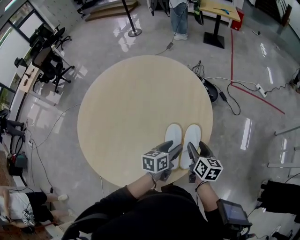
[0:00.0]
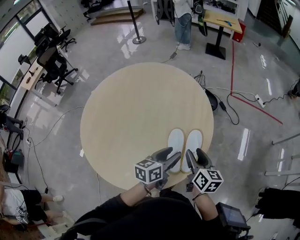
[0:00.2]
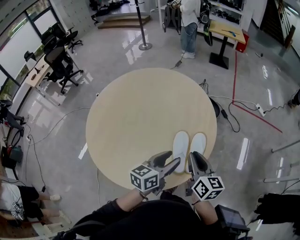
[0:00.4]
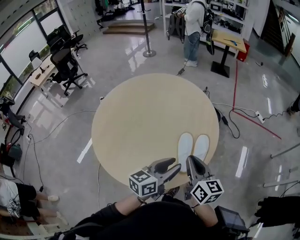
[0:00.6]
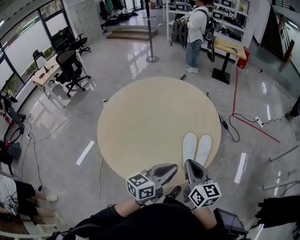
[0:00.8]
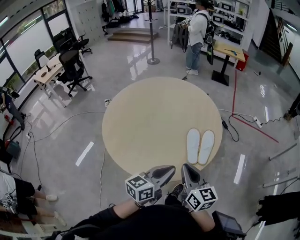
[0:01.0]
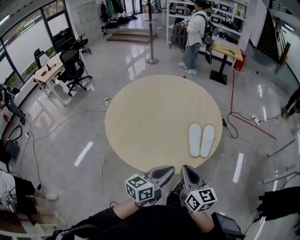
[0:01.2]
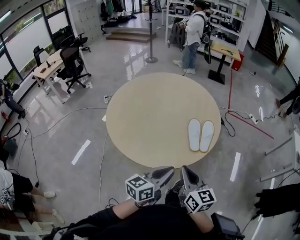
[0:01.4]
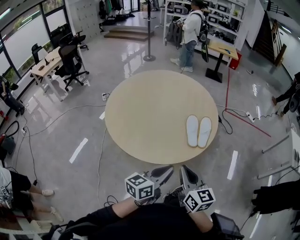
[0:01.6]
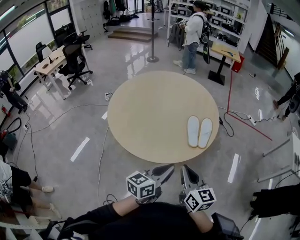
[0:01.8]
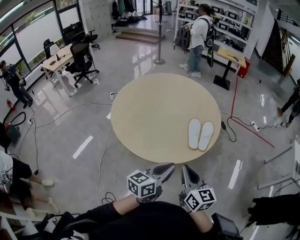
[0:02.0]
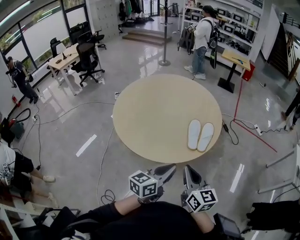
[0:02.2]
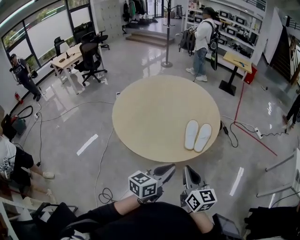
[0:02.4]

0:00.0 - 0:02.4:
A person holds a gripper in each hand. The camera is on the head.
0:00.0 - 0:01.2: The two grippers travel together, backward and to the left, about 40 cm. Both grippers move upward, about 20 cm. The right gripper rotates some 30 degrees, and closes its fingers; the left gripper rotates approximately 30 degrees, and closes.
0:01.2 - 0:02.4: The two grippers go approximately 15 cm to the right and backward.

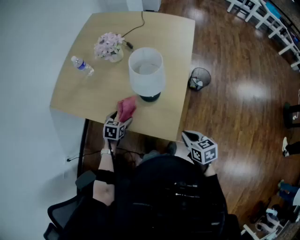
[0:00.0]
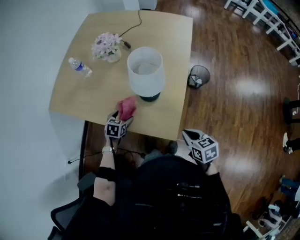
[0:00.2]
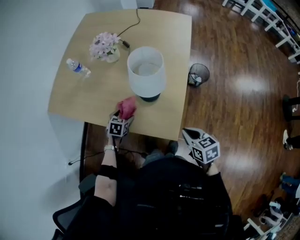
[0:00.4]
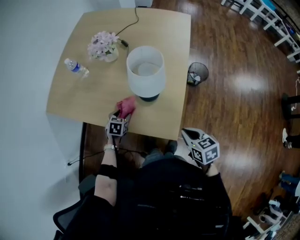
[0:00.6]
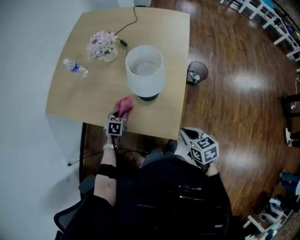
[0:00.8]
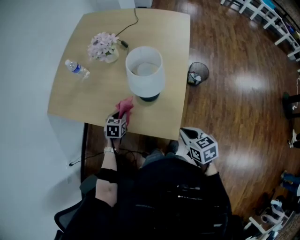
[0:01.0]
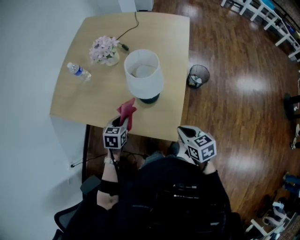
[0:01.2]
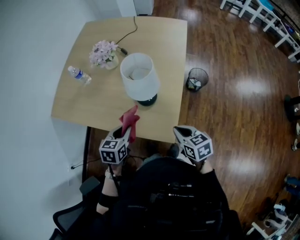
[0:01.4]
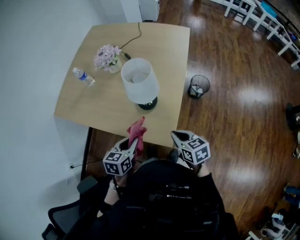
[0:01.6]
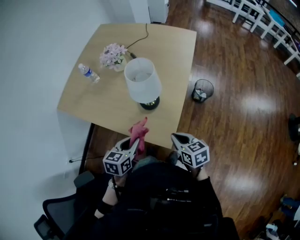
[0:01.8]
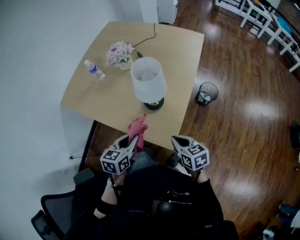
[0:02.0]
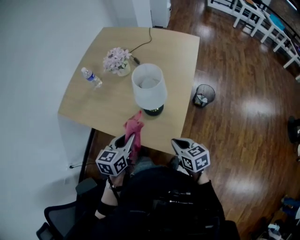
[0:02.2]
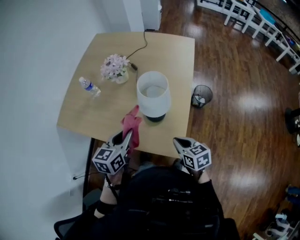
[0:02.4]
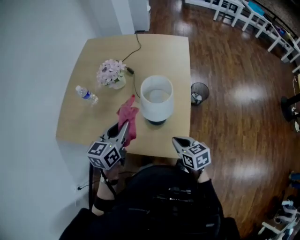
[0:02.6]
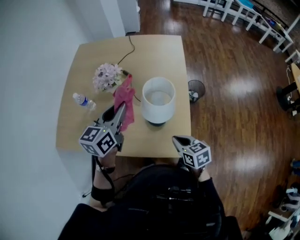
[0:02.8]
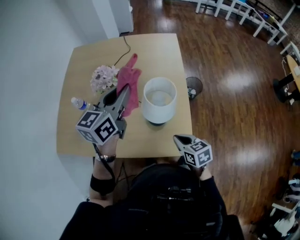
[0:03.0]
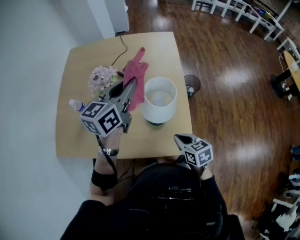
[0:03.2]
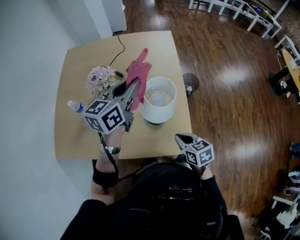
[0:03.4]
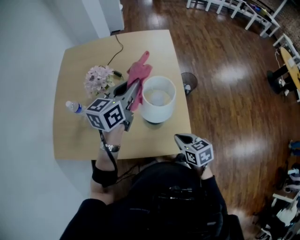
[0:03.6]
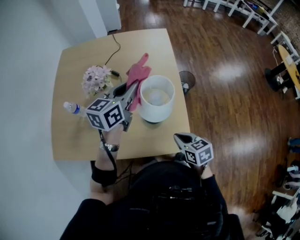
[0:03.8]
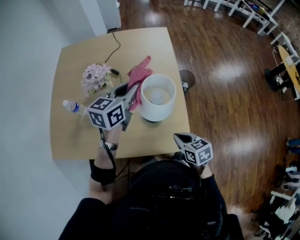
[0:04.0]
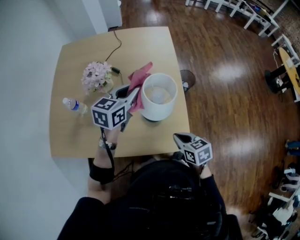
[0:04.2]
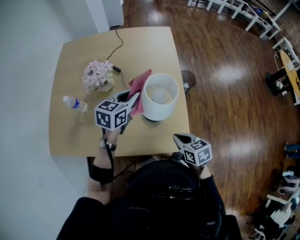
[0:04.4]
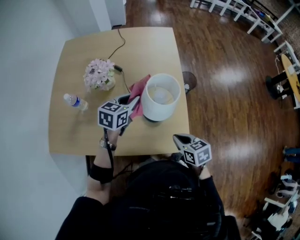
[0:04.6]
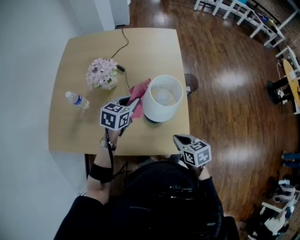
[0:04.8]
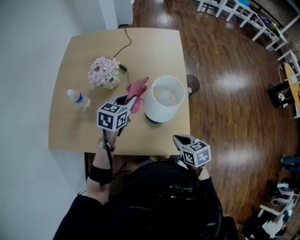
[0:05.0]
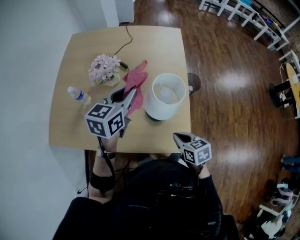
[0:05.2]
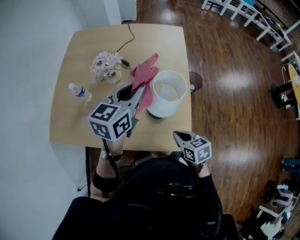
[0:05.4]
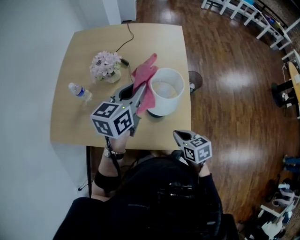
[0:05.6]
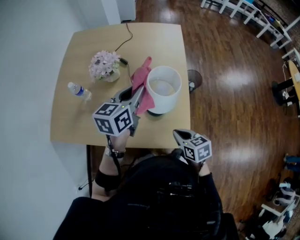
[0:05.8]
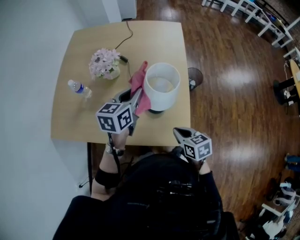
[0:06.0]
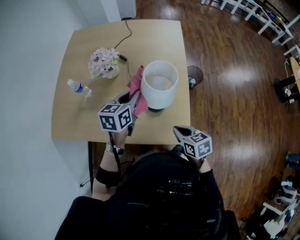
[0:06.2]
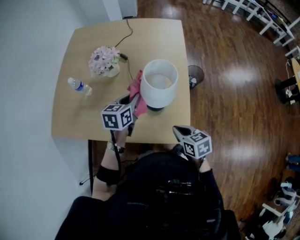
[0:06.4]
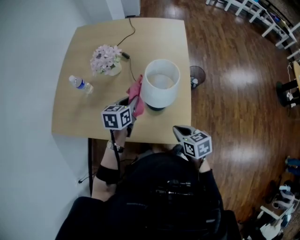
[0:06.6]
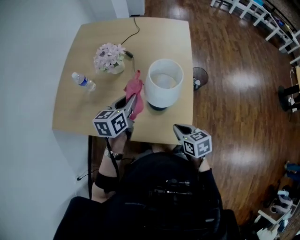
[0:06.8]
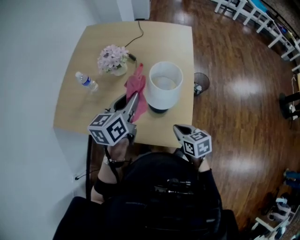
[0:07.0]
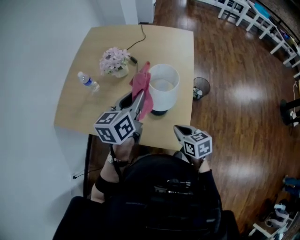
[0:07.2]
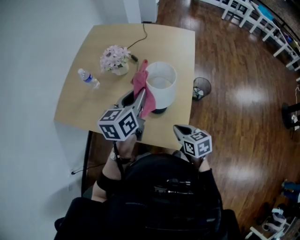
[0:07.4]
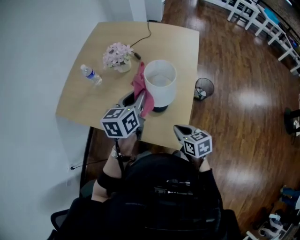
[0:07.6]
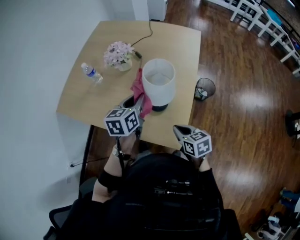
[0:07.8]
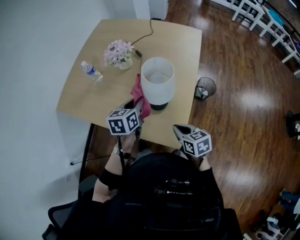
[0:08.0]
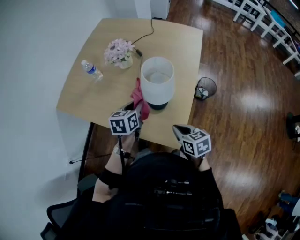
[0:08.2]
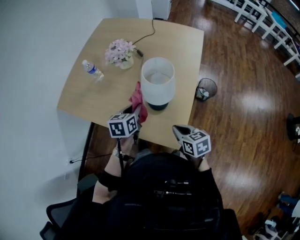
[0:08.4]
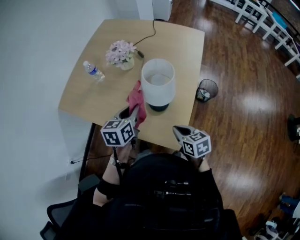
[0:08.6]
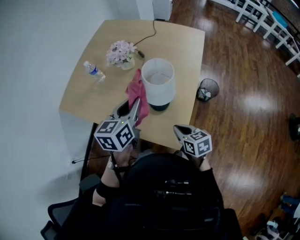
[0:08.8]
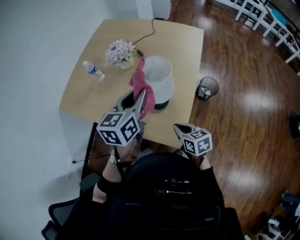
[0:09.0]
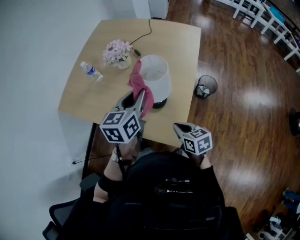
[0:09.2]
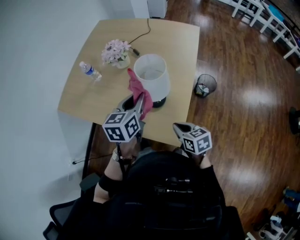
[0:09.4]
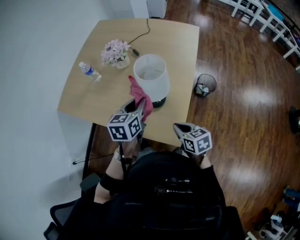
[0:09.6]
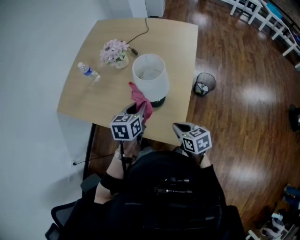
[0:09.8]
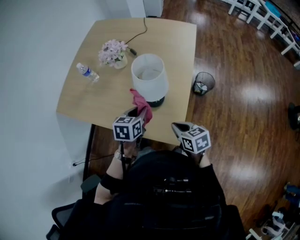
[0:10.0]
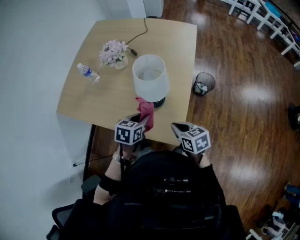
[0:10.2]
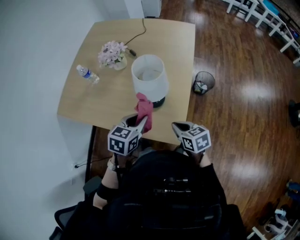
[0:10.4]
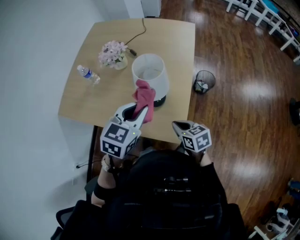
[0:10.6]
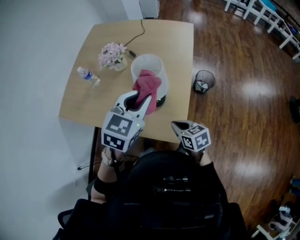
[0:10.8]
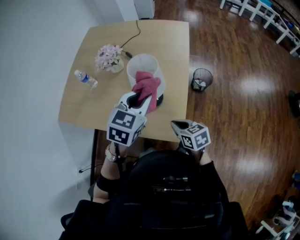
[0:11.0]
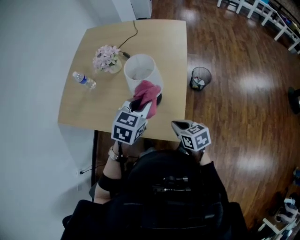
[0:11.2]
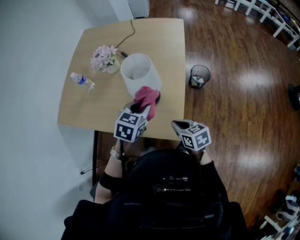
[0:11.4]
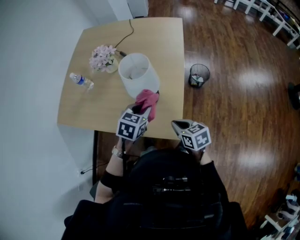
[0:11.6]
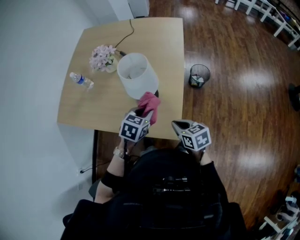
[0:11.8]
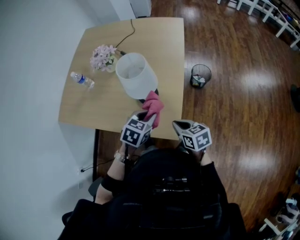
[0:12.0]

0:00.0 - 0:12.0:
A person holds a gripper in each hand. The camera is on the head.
0:00.0 - 0:01.6: The left gripper moves upward, backward and to the right, some 20 cm, and closes up. The right gripper changes place by approximately 5 cm.
0:01.6 - 0:03.0: The left gripper shifts approximately 35 cm forward and upward, and tilts its fingers about 30 degrees upward, while the right gripper is displaced to the left and forward by about 10 cm.
0:03.0 - 0:04.4: The left gripper is displaced downward by approximately 15 cm, and turns by about 20 degrees.
0:04.4 - 0:06.0: The left gripper swings up and down, about 15 cm each way, with 2 reversals.
0:06.0 - 0:07.6: The left gripper moves up and down over about 15 cm, changing direction 2 times.
0:07.6 - 0:09.0: The left gripper moves roughly 15 cm downward and comes back.
0:09.0 - 0:10.4: The left gripper heads downward and backward, covering roughly 15 cm, and rotates approximately 30 degrees.
0:10.4 - 0:12.0: The left gripper goes roughly 5 cm to the right, and reaches roughly 15 cm upward, then returns.

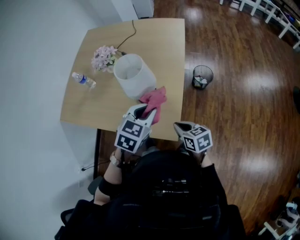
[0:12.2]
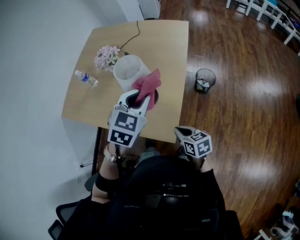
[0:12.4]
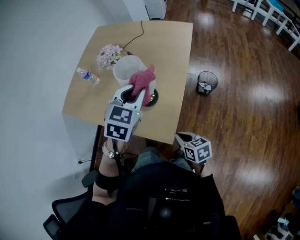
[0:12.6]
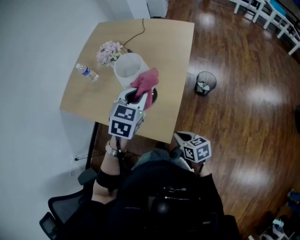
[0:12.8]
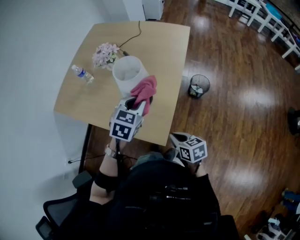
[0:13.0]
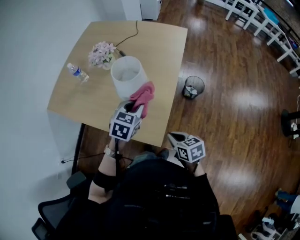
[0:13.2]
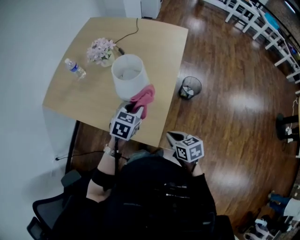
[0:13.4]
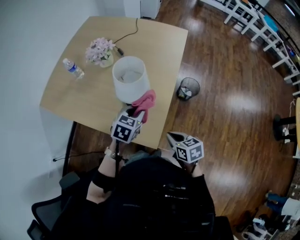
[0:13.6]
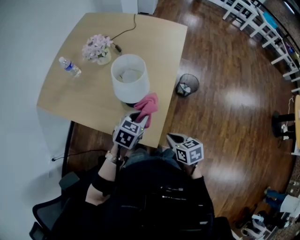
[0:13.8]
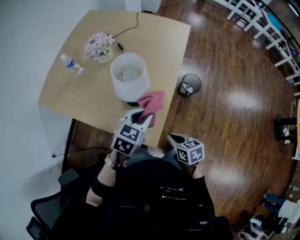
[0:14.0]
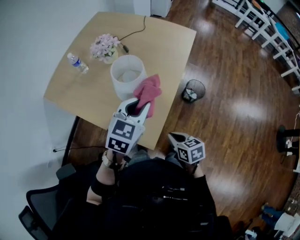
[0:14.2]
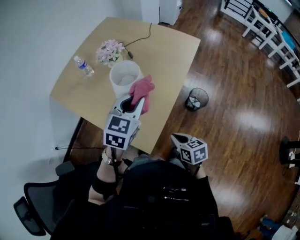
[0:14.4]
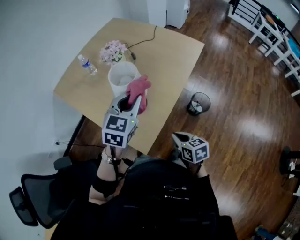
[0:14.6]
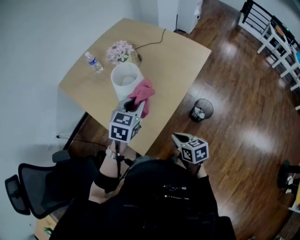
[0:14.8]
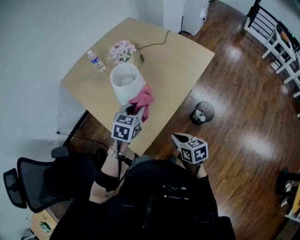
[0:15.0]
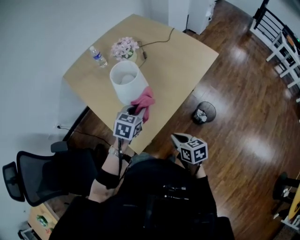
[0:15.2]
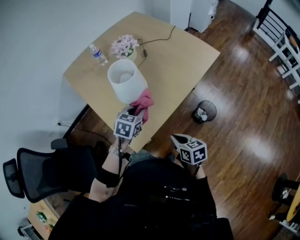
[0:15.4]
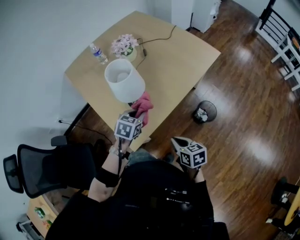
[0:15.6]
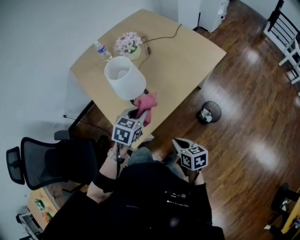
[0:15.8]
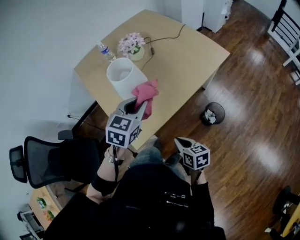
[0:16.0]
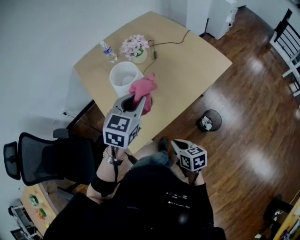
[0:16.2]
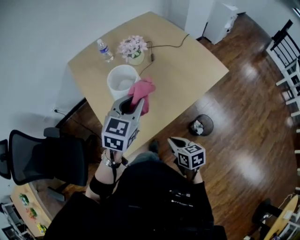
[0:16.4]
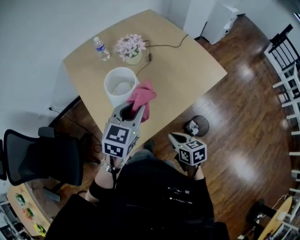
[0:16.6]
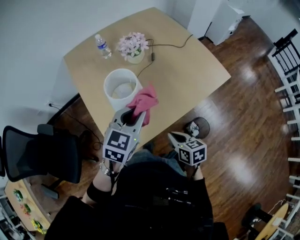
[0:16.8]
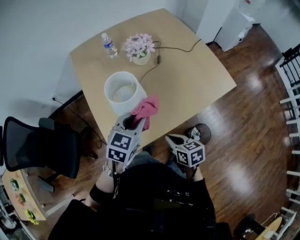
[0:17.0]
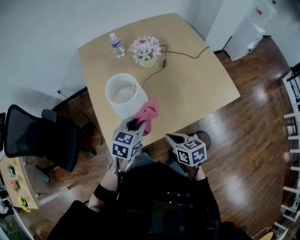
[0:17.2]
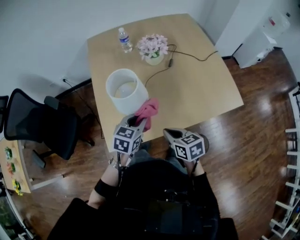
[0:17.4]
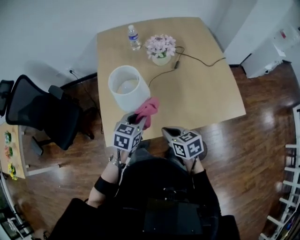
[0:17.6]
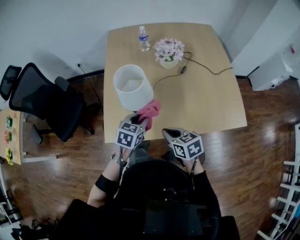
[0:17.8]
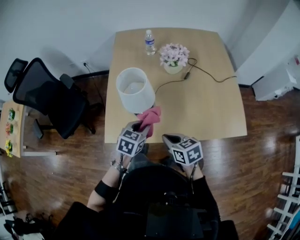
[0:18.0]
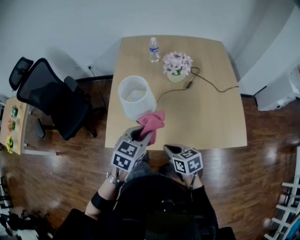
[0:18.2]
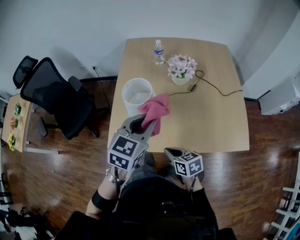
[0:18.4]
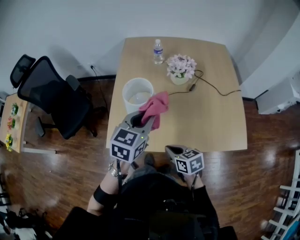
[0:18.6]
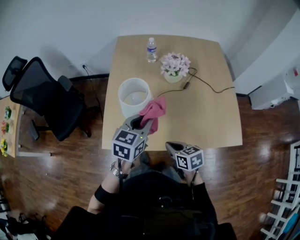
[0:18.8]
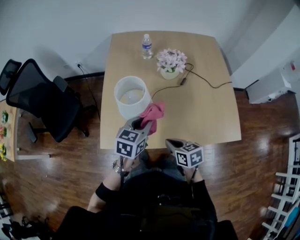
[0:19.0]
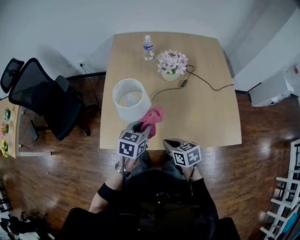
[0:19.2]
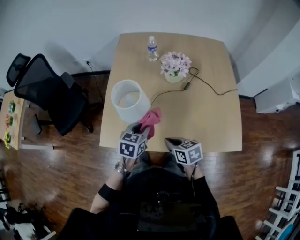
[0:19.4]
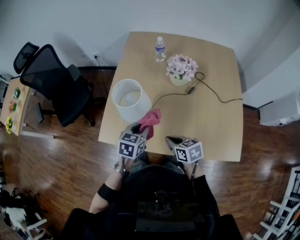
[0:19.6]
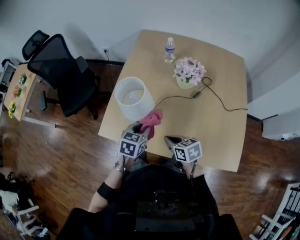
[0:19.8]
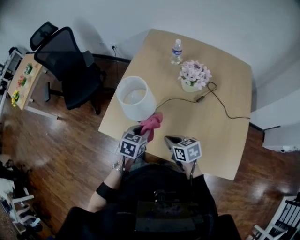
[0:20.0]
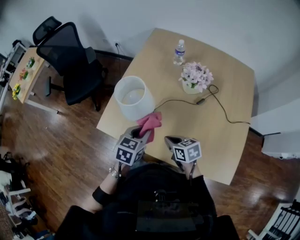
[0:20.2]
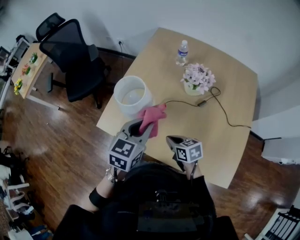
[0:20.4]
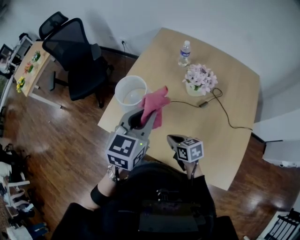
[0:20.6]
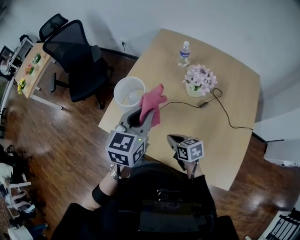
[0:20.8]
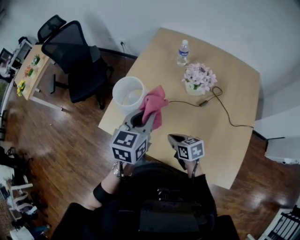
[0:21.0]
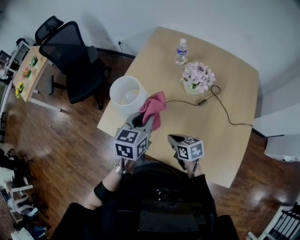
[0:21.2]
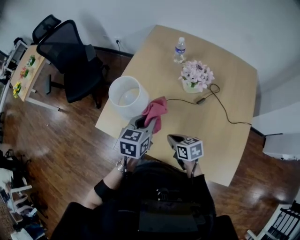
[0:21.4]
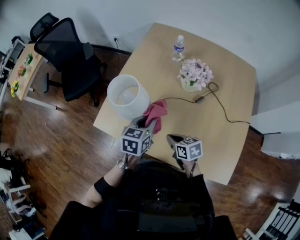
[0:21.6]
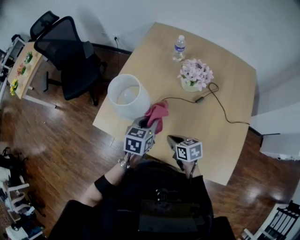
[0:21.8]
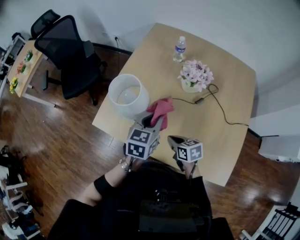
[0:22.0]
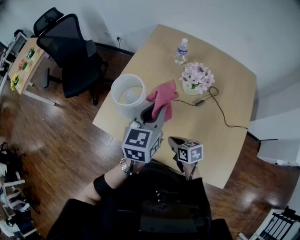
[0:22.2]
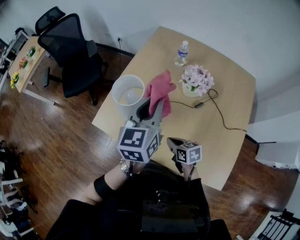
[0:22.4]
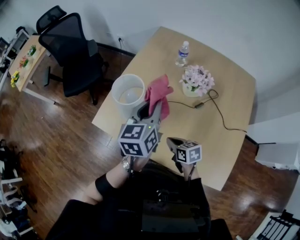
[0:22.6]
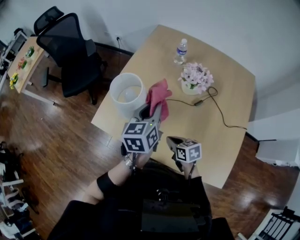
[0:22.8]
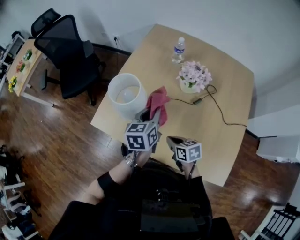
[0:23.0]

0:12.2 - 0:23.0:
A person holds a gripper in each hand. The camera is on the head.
0:12.2 - 0:13.8: The left gripper goes about 10 cm downward.
0:13.8 - 0:15.2: The right gripper moves roughly 15 cm, and rotates about 20 degrees, while the left gripper reaches about 15 cm upward, then returns, and swivels approximately 30 degrees.
0:15.2 - 0:16.8: The left gripper is displaced upward by some 10 cm, while the right gripper is displaced forward and to the right by roughly 10 cm.
0:16.8 - 0:18.4: The left gripper moves roughly 15 cm downward and comes back, and changes its angle by about 40 degrees. The right gripper shifts by about 10 cm, and rotates approximately 40 degrees.
0:18.4 - 0:20.0: The left gripper is displaced downward by some 20 cm, and turns by approximately 30 degrees, while the right gripper heads forward and to the right, covering about 10 cm, and changes its angle by approximately 20 degrees.
0:20.0 - 0:21.4: The right gripper moves some 5 cm. Meanwhile the left gripper goes roughly 10 cm upward and to the right.
0:21.4 - 0:23.0: The left gripper goes up and down, some 20 cm each way, reversing 2 times.
